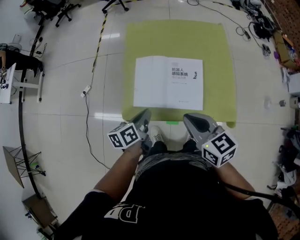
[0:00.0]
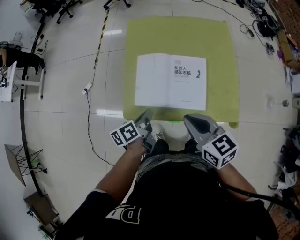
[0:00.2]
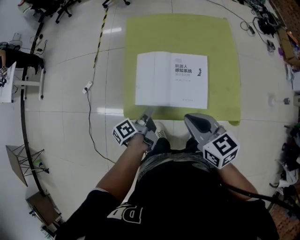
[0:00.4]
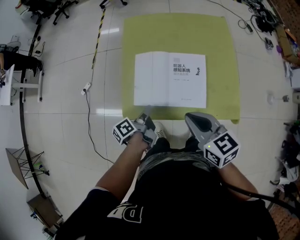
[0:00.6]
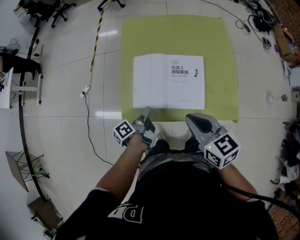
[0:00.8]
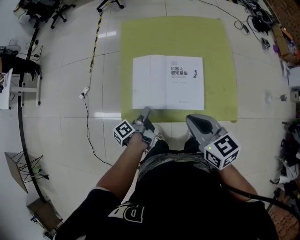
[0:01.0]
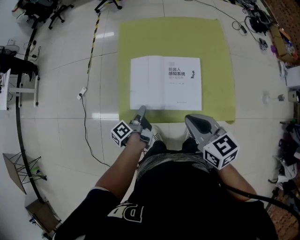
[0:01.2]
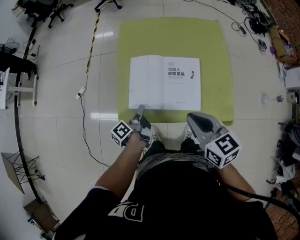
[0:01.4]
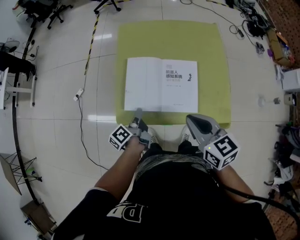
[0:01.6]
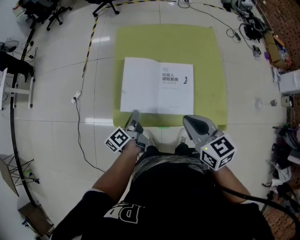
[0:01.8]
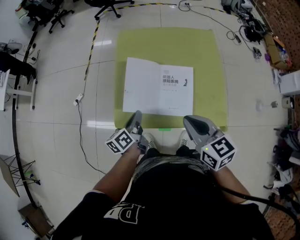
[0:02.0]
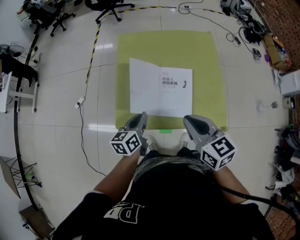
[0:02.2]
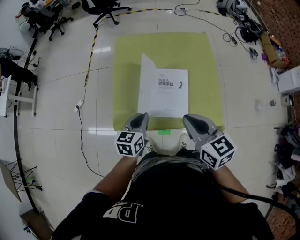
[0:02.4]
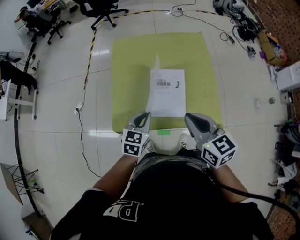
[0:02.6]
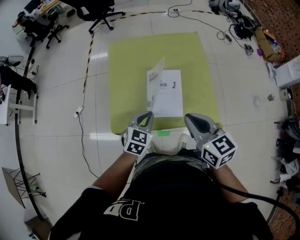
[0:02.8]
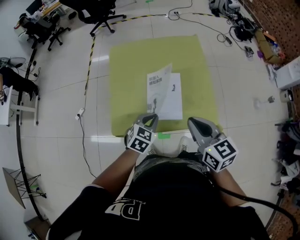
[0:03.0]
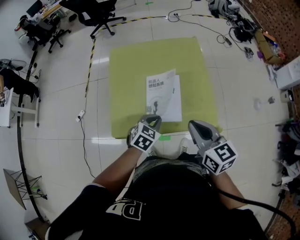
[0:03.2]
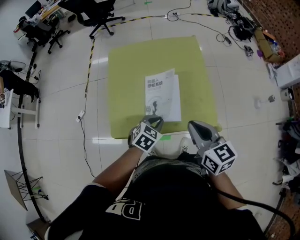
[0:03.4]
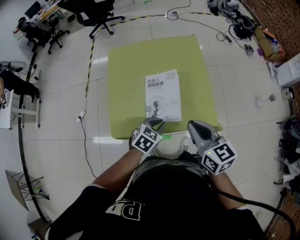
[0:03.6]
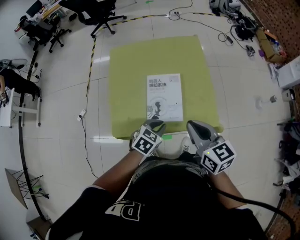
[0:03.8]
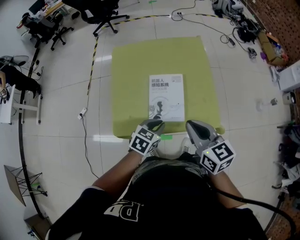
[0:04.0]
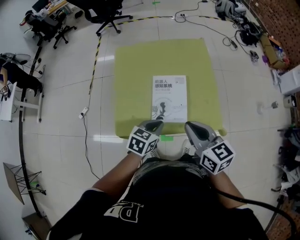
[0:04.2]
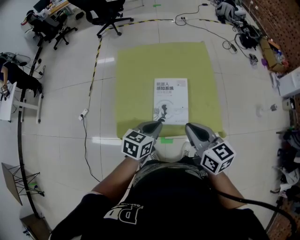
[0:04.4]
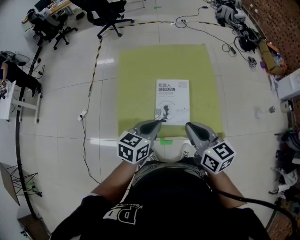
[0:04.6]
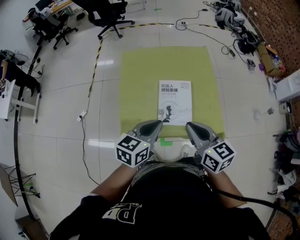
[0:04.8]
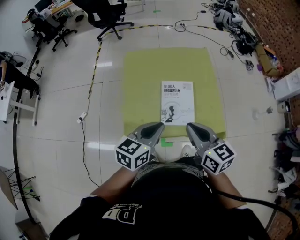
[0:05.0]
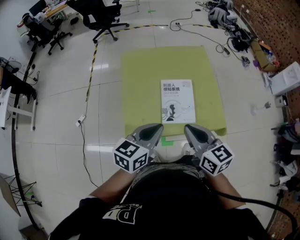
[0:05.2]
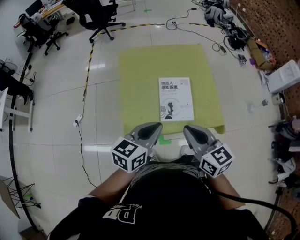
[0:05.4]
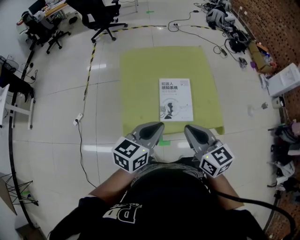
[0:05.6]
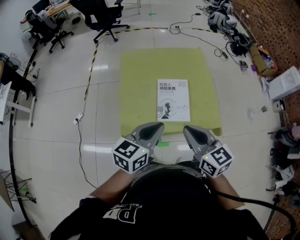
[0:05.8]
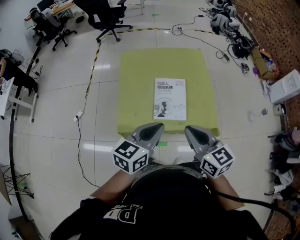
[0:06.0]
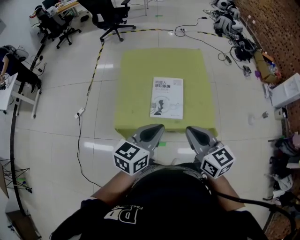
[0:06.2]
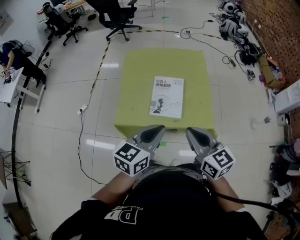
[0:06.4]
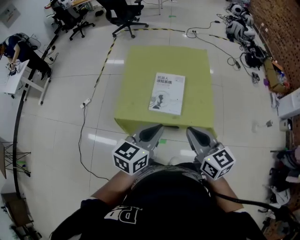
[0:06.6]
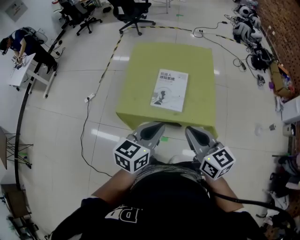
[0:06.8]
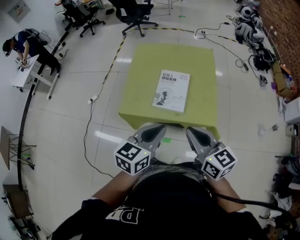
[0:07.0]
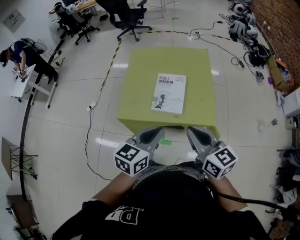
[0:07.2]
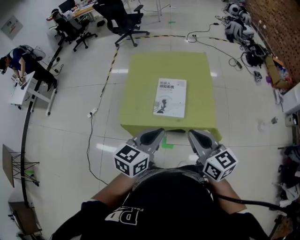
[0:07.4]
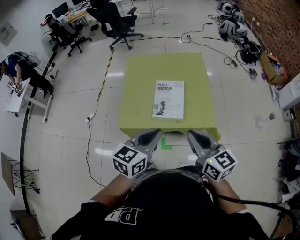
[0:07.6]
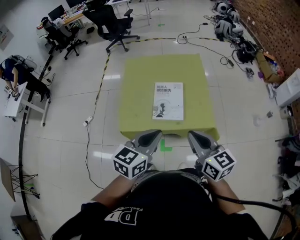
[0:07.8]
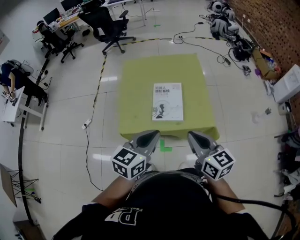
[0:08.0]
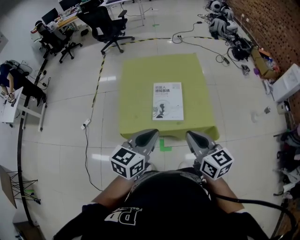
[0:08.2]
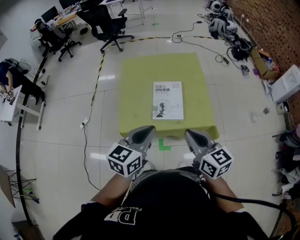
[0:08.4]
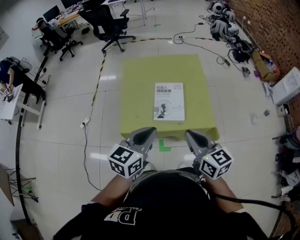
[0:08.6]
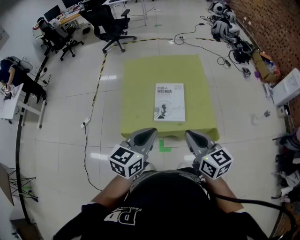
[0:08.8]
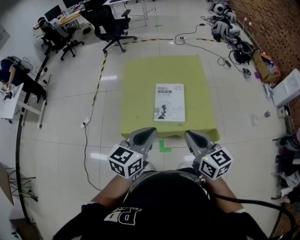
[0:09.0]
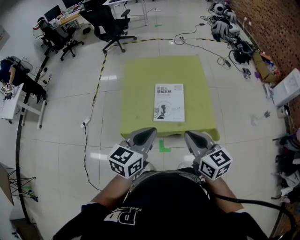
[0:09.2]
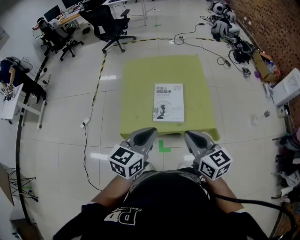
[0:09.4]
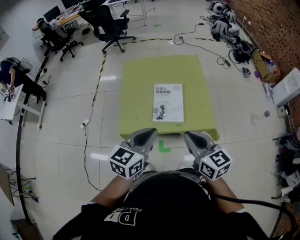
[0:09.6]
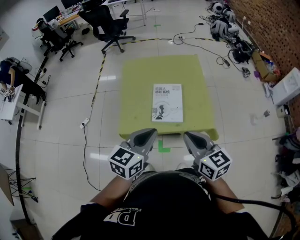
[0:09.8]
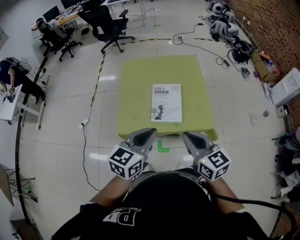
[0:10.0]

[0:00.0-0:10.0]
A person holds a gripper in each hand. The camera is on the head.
0.0 to 1.4 s: The left gripper heads downward, covering approximately 10 cm, changes its angle by about 40 degrees, and opens up.
1.4 to 2.8 s: The right gripper goes about 5 cm to the right; the left gripper shifts approximately 15 cm to the right and upward, rolls clockwise, seen from behind, by about 100 degrees, and closes up.
2.8 to 4.2 s: The left gripper turns by some 20 degrees.
4.2 to 5.8 s: The right gripper heads to the left and backward, covering about 10 cm; the left gripper travels upward by about 15 cm, and swivels some 30 degrees.
5.8 to 7.2 s: The left gripper moves backward and to the right, roughly 15 cm, while the right gripper goes about 15 cm to the right and backward.
7.2 to 8.6 s: Both grippers move to the left, approximately 5 cm.
8.6 to 10.0 s: The grippers move only a little.

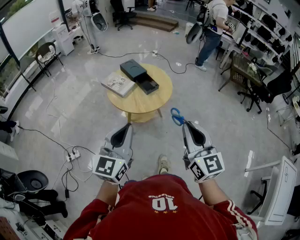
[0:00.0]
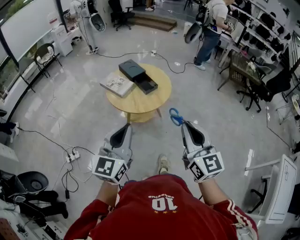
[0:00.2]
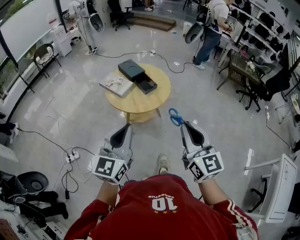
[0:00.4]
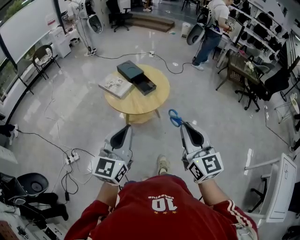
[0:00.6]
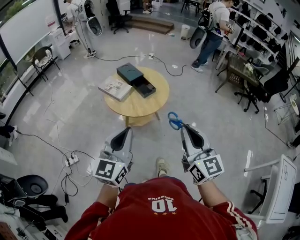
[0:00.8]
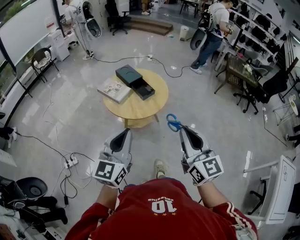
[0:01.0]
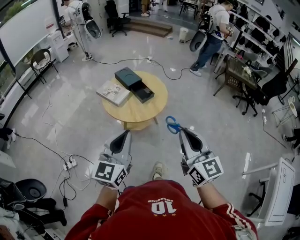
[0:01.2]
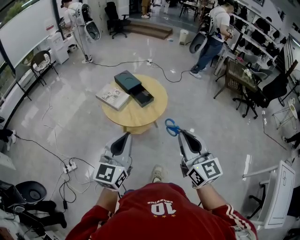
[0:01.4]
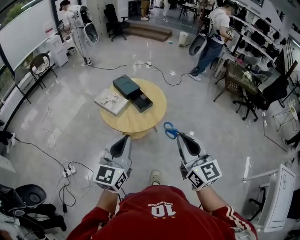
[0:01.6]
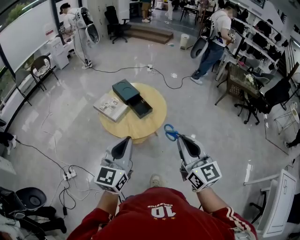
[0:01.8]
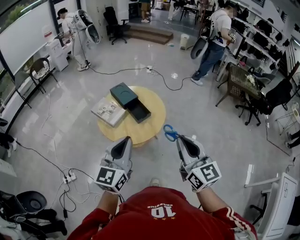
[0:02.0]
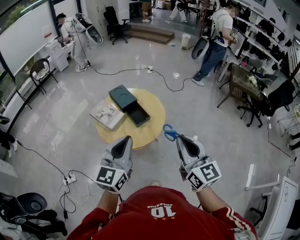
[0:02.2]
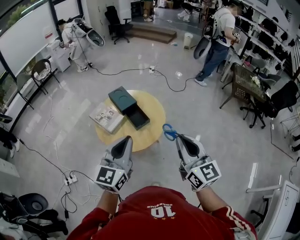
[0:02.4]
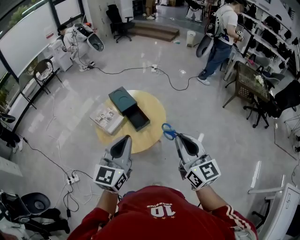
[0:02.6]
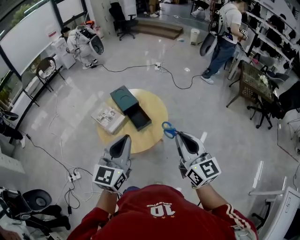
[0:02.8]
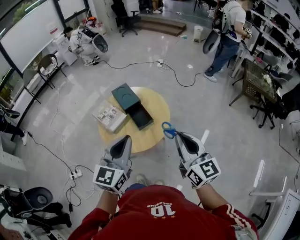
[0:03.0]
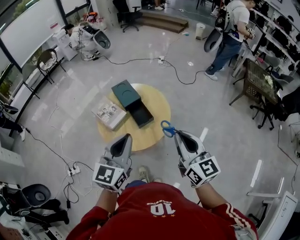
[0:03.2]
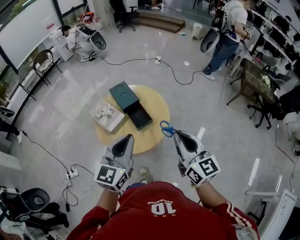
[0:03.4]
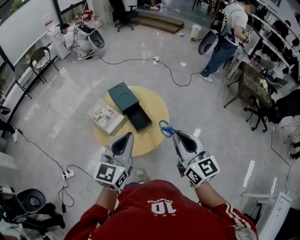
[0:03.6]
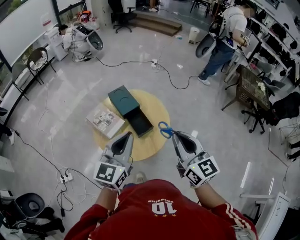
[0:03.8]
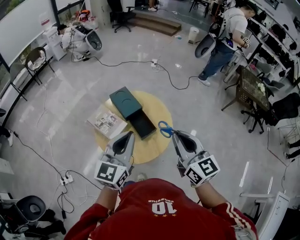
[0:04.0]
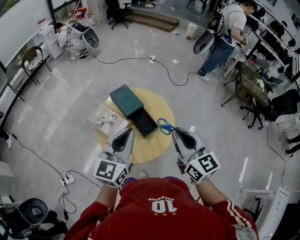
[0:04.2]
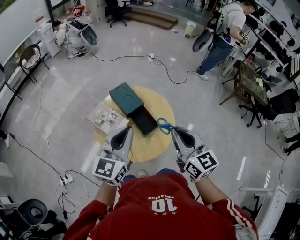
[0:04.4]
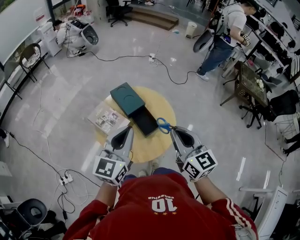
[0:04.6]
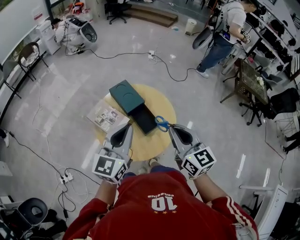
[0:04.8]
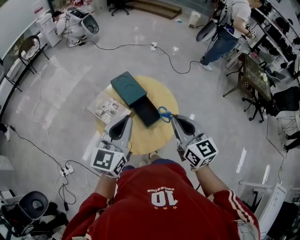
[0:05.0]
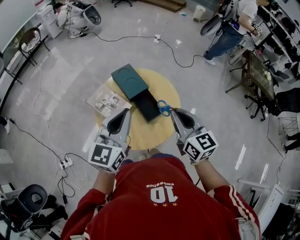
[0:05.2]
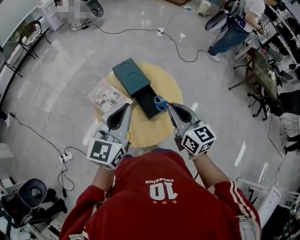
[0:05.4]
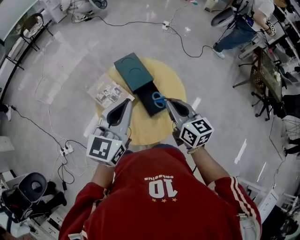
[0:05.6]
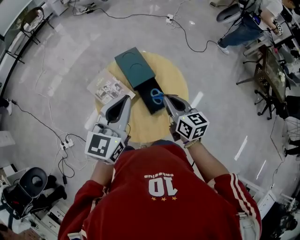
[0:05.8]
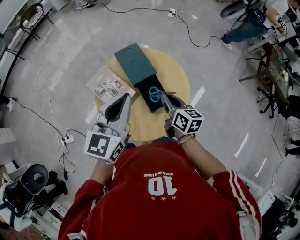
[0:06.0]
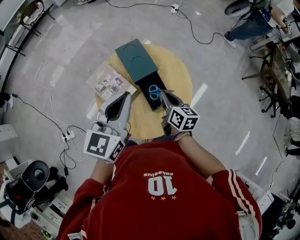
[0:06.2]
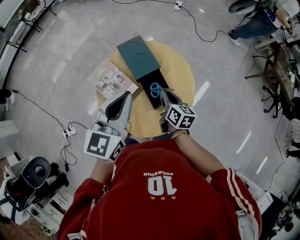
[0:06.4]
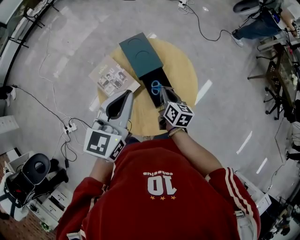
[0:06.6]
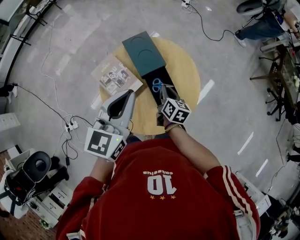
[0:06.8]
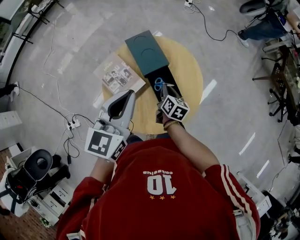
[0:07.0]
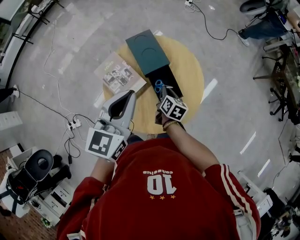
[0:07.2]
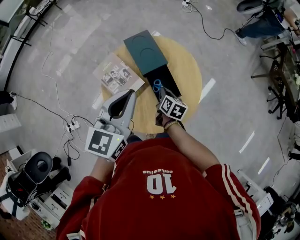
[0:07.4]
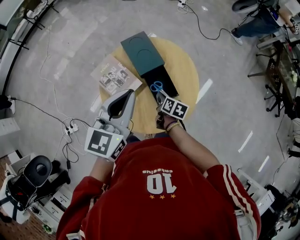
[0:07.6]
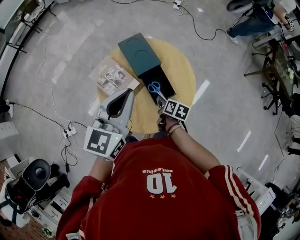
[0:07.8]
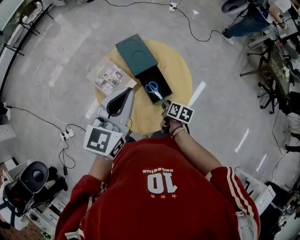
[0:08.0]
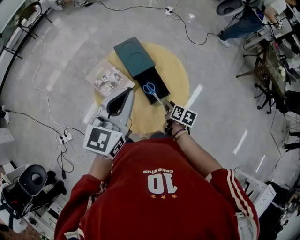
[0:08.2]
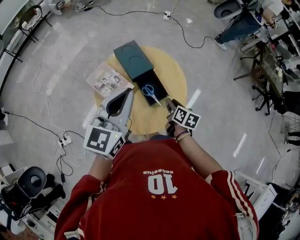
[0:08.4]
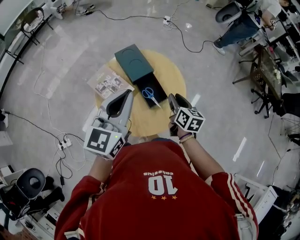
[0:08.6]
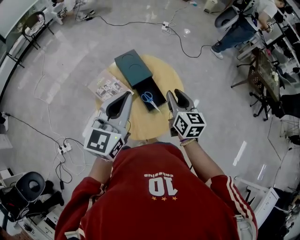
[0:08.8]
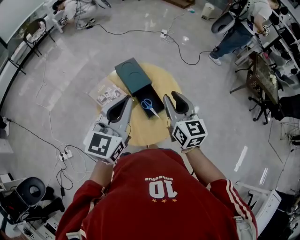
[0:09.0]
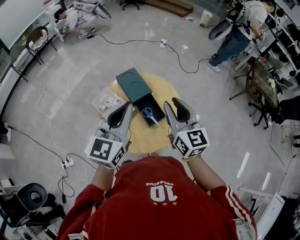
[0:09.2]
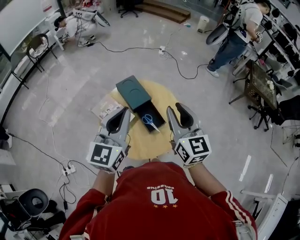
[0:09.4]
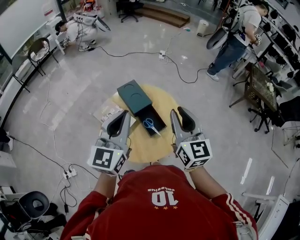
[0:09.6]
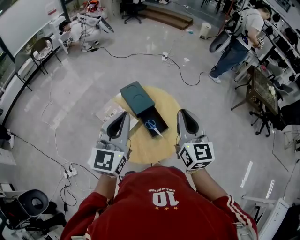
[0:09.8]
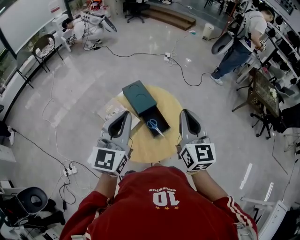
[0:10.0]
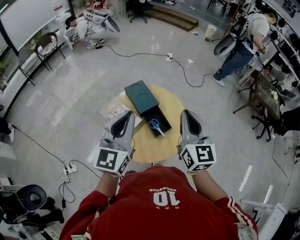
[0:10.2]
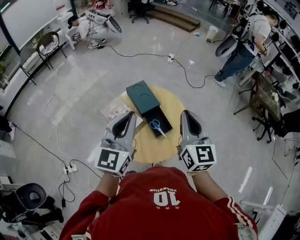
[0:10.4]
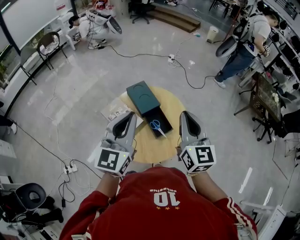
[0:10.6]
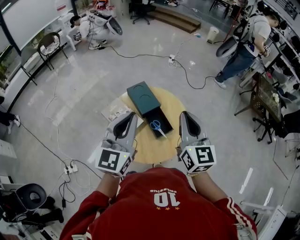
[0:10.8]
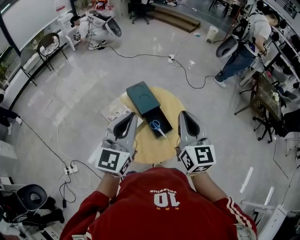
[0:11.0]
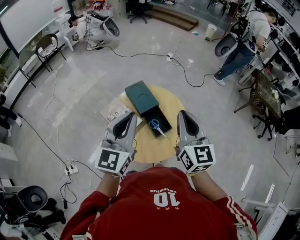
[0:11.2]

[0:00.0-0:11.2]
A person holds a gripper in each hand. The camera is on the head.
0.0 to 1.6 s: Both grippers move forward, roughly 5 cm.
1.6 to 3.2 s: The right gripper is displaced forward by approximately 25 cm. The left gripper goes approximately 20 cm forward and to the right.
3.2 to 4.8 s: The right gripper goes approximately 15 cm to the left and forward, while the left gripper is displaced forward and to the left by some 15 cm.
4.8 to 6.4 s: The left gripper shifts about 10 cm forward and downward. The right gripper heads downward and forward, covering roughly 30 cm, and changes its angle by approximately 40 degrees.
6.4 to 8.0 s: The right gripper goes some 10 cm downward and backward, swivels approximately 30 degrees, and opens up.
8.0 to 9.6 s: The left gripper travels upward by about 10 cm, while the right gripper goes about 40 cm upward, and angles its fingers upward, by approximately 50 degrees.
9.6 to 11.2 s: There are only small adjustments of the grippers.

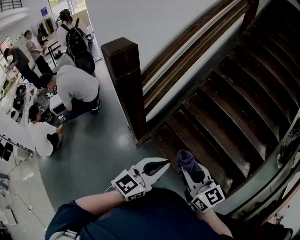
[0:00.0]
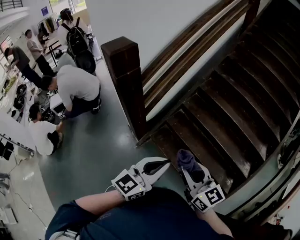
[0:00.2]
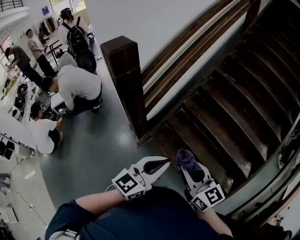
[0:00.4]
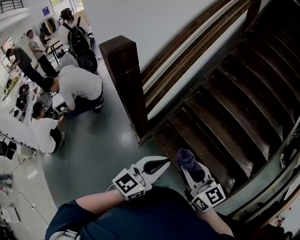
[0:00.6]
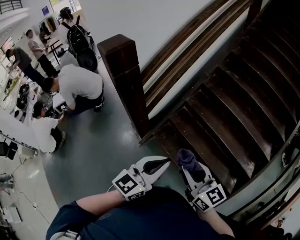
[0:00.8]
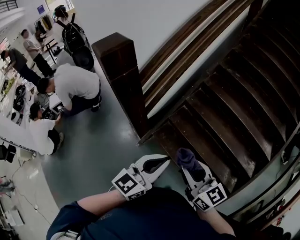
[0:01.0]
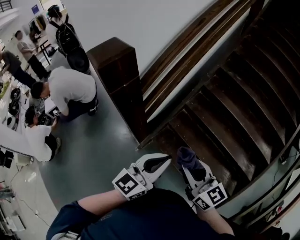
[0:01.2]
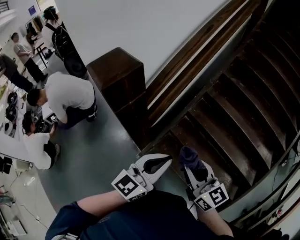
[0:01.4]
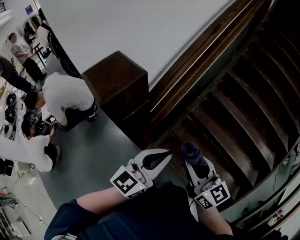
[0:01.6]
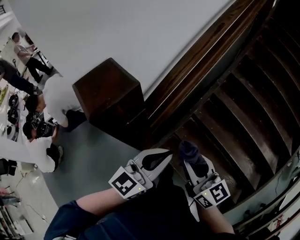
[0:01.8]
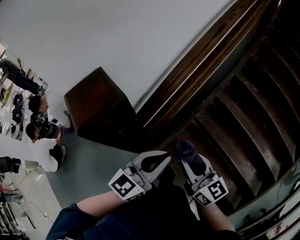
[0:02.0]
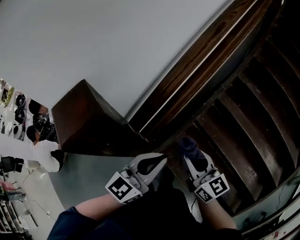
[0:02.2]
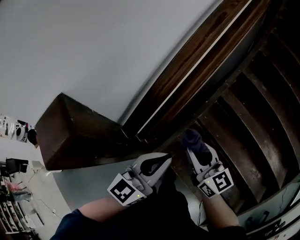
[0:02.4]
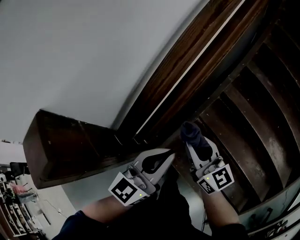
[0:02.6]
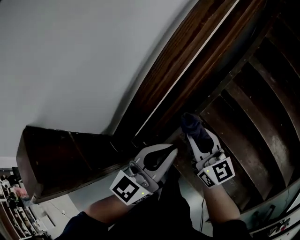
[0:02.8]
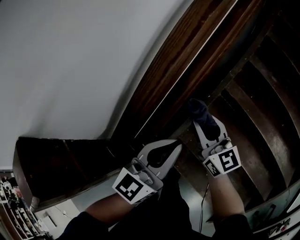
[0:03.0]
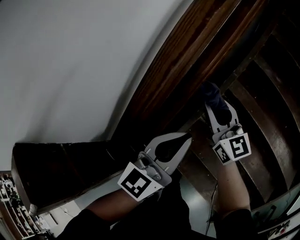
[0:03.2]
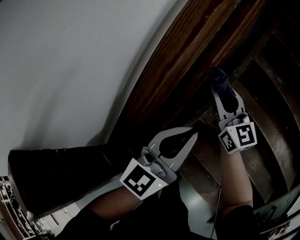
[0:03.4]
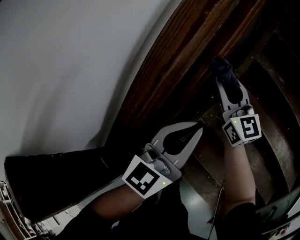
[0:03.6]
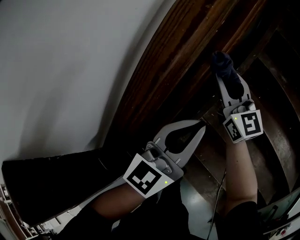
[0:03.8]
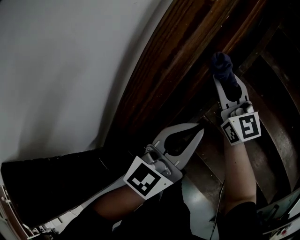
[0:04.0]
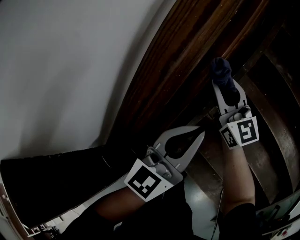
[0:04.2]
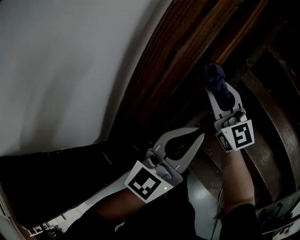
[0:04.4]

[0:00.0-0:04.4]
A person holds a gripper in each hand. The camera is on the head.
0.0 to 1.4 s: The grippers both shift forward and to the left by approximately 25 cm.
1.4 to 3.0 s: Both grippers move forward, approximately 40 cm.
3.0 to 4.4 s: The left gripper moves downward, some 5 cm; the right gripper heads forward and downward, covering about 10 cm.
